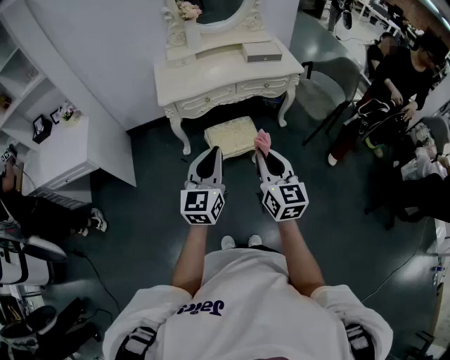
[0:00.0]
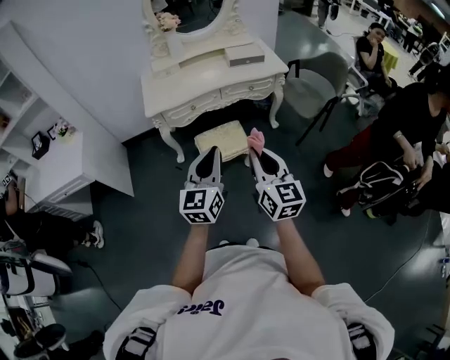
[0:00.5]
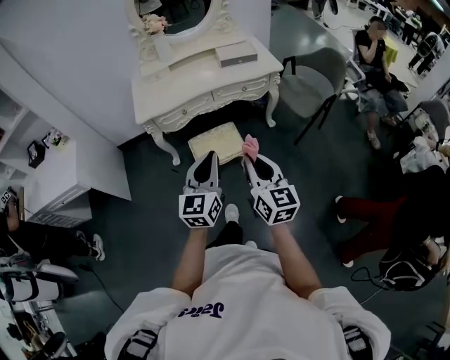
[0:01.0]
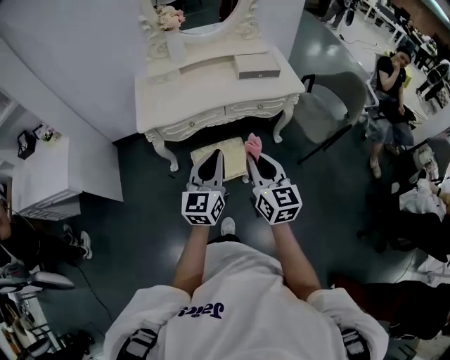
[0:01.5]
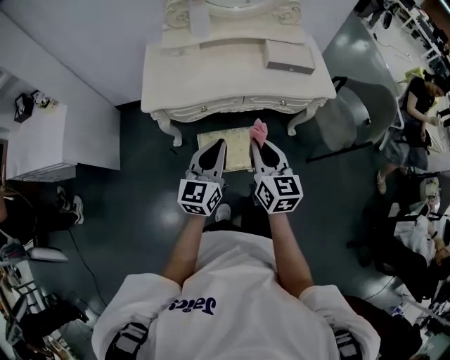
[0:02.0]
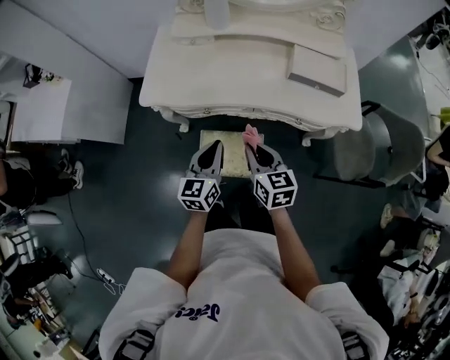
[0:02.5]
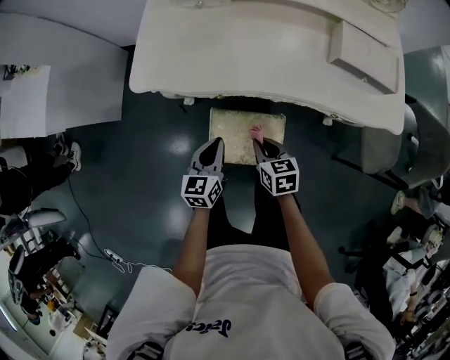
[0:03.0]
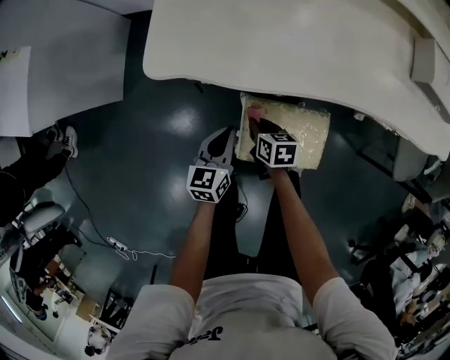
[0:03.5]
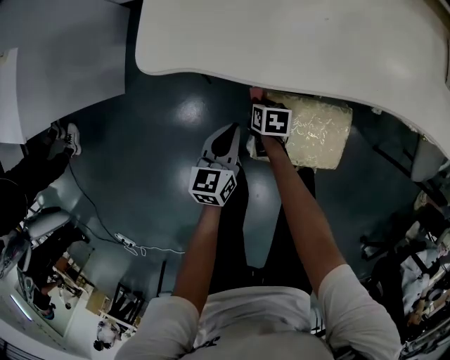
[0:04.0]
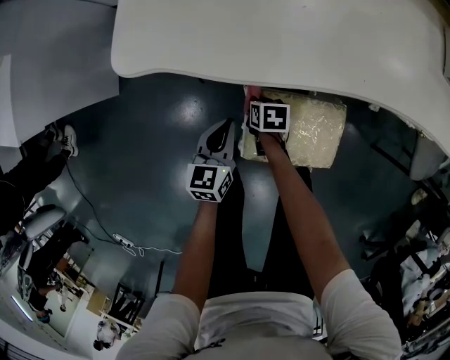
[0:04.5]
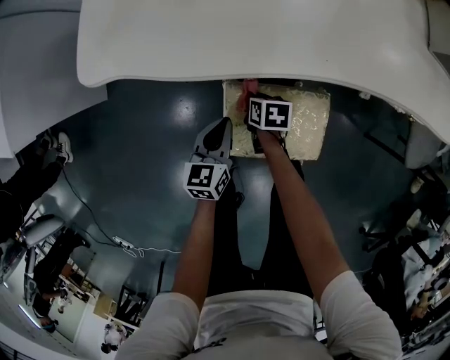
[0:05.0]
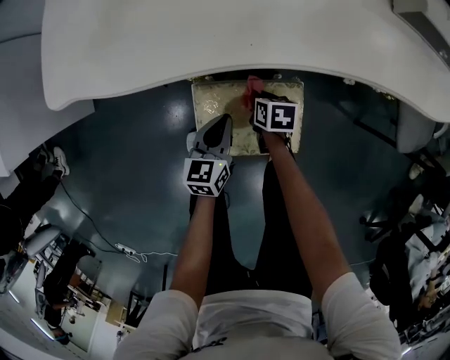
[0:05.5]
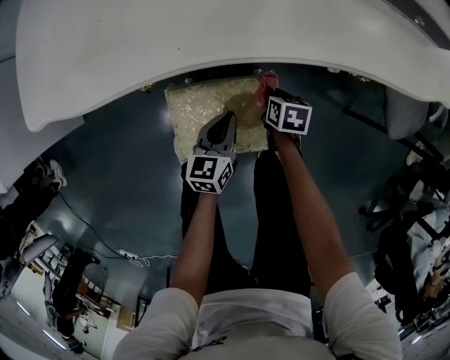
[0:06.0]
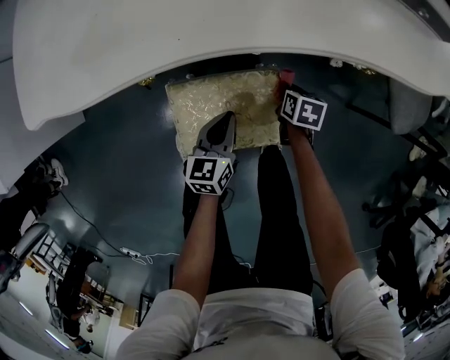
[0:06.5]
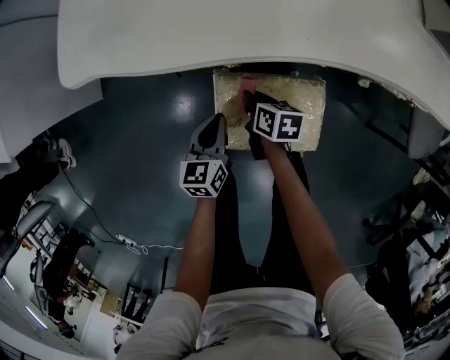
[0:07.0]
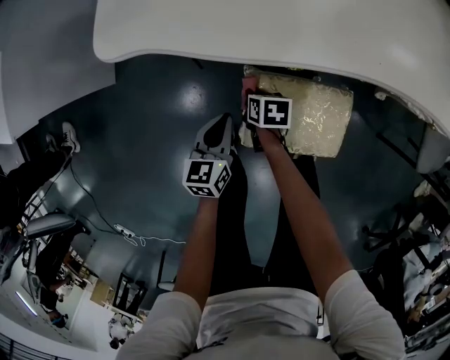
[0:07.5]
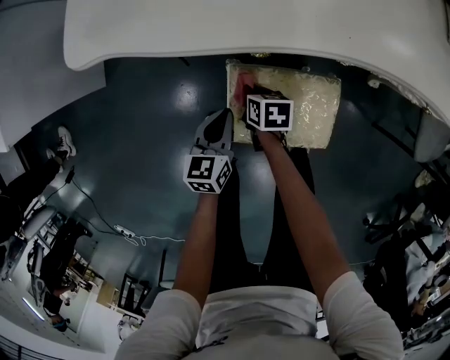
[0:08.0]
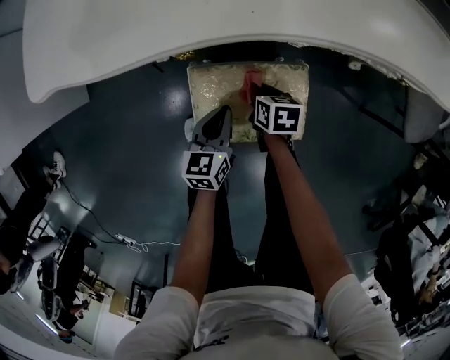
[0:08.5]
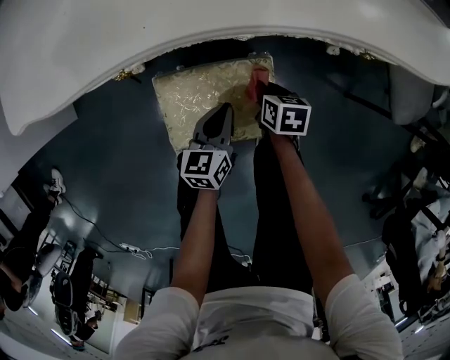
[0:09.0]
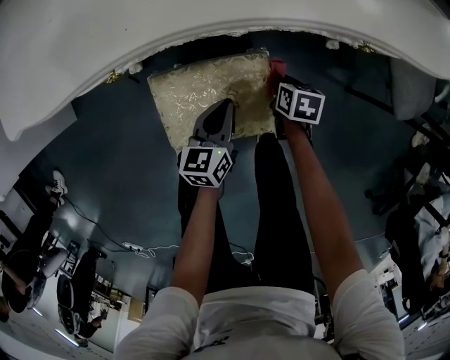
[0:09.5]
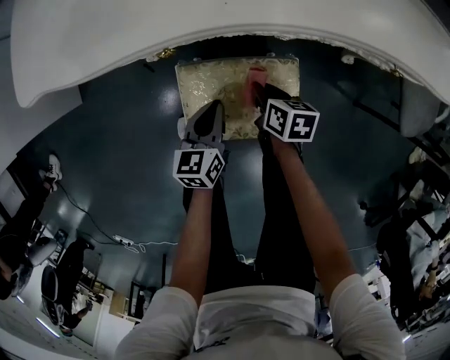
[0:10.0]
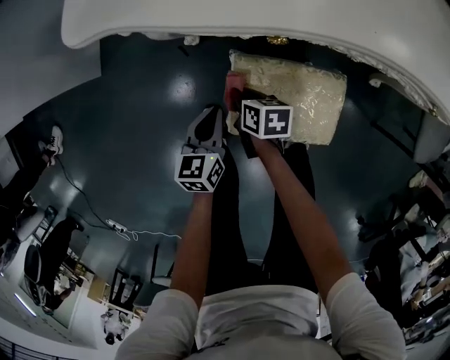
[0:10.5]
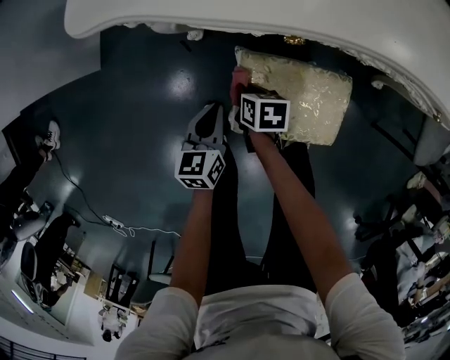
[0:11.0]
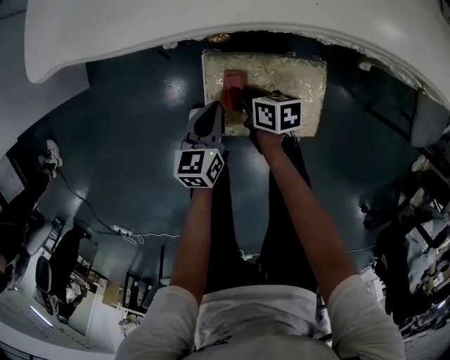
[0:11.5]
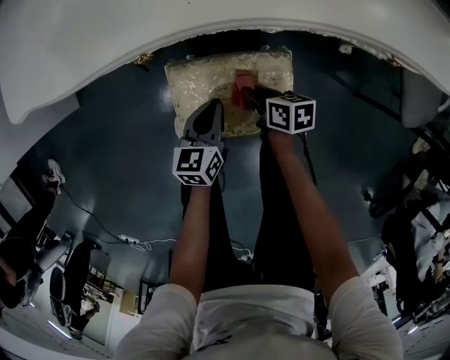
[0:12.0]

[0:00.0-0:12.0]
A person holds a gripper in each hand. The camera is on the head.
0:00.0 to 0:02.0: The two grippers go about 35 cm forward.
0:02.0 to 0:04.0: Both grippers move downward, about 50 cm. The right gripper tips its fingers downward by some 50 degrees, while the left gripper changes its angle by approximately 30 degrees.
0:04.0 to 0:06.0: Both grippers travel together to the right, about 30 cm.
0:06.0 to 0:08.0: The right gripper ends up some 25 cm from where it was, while the left gripper shifts by roughly 20 cm.
0:08.0 to 0:10.0: Both grippers move to the right, some 15 cm.
0:10.0 to 0:12.0: The left gripper goes to the left and returns, roughly 15 cm each way. The right gripper travels to the left and back again, roughly 20 cm each way.

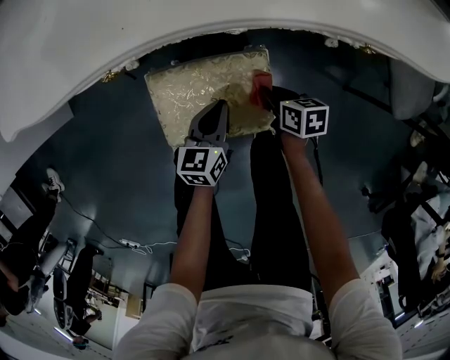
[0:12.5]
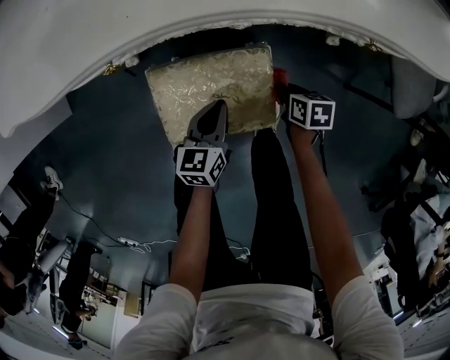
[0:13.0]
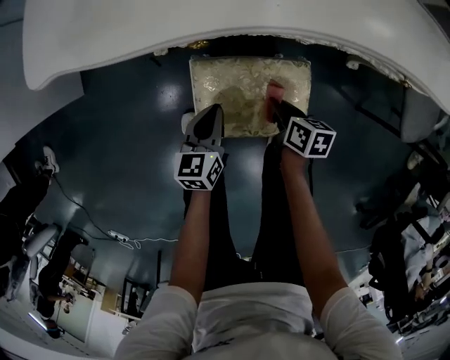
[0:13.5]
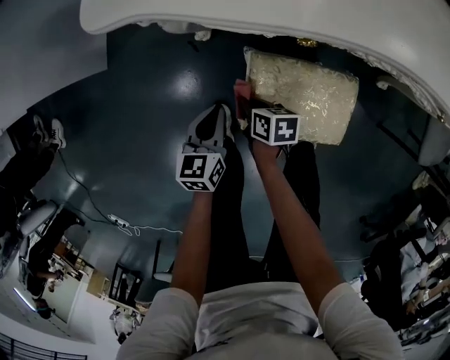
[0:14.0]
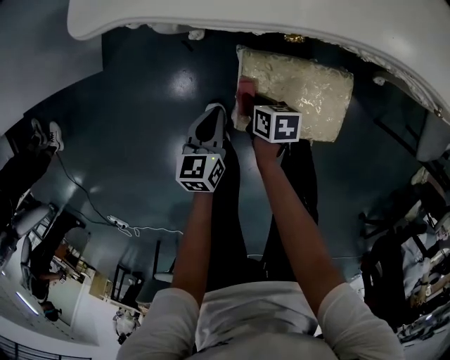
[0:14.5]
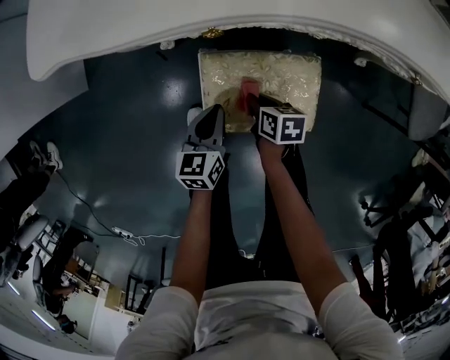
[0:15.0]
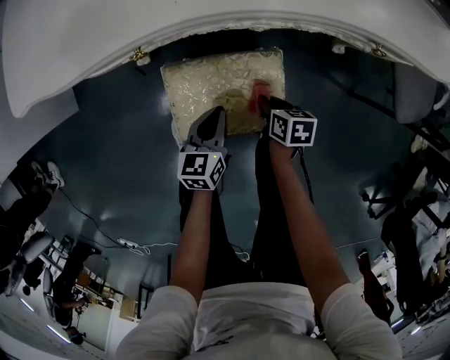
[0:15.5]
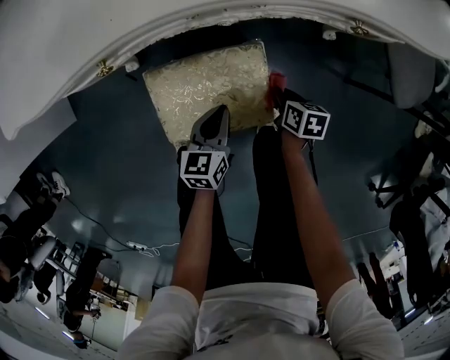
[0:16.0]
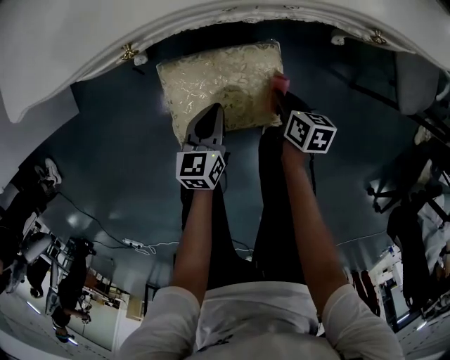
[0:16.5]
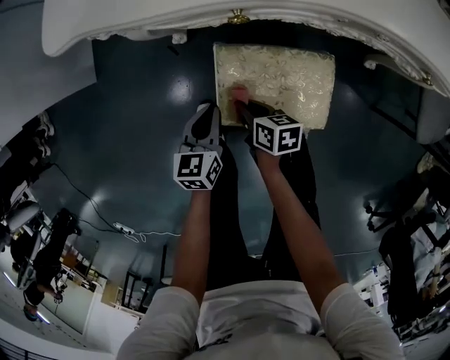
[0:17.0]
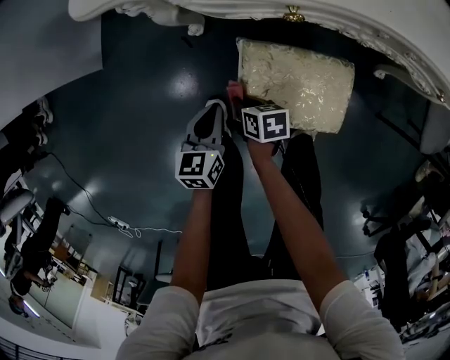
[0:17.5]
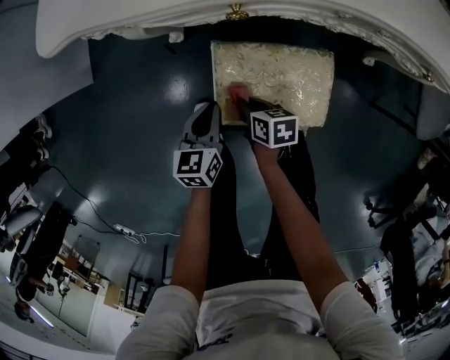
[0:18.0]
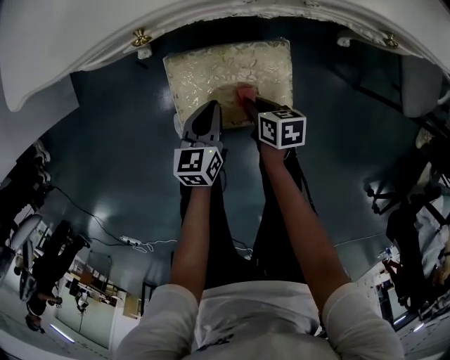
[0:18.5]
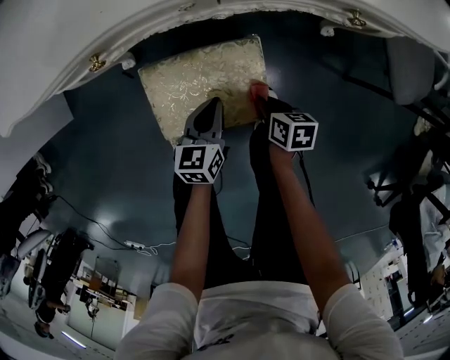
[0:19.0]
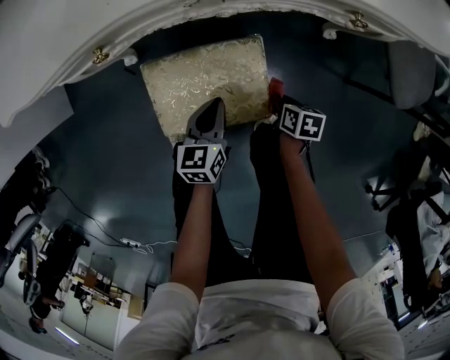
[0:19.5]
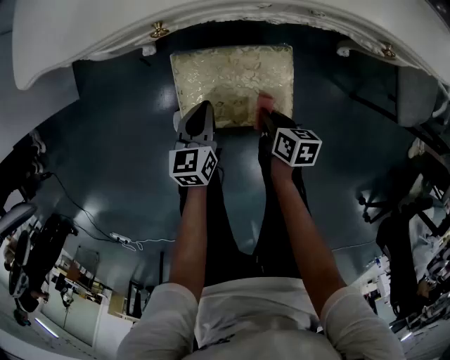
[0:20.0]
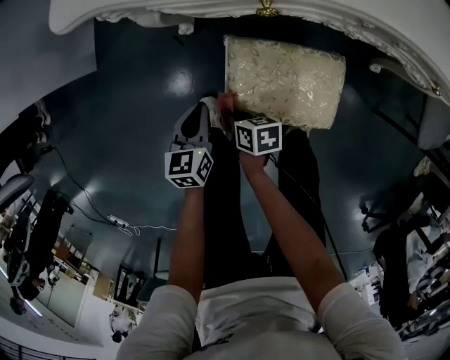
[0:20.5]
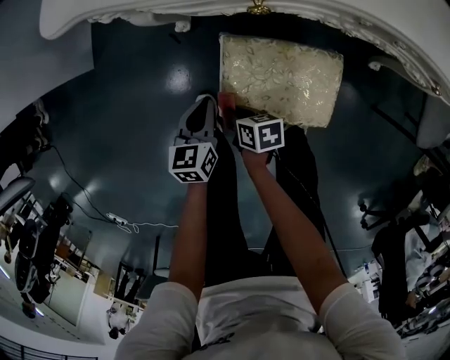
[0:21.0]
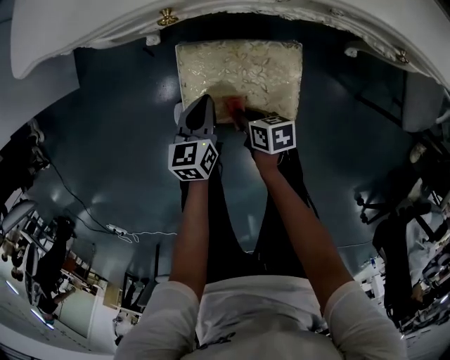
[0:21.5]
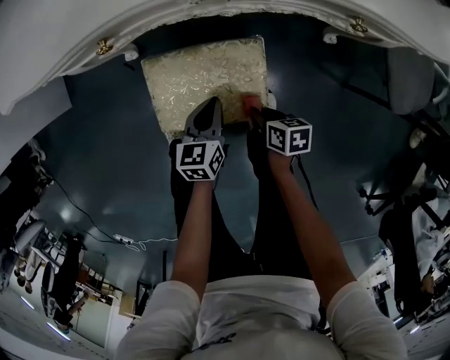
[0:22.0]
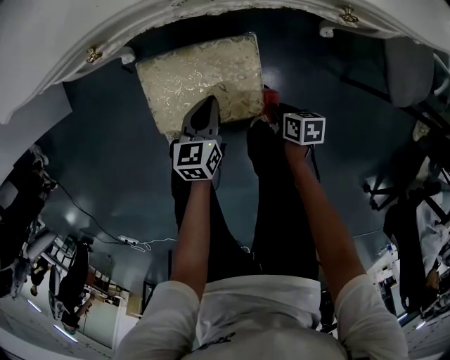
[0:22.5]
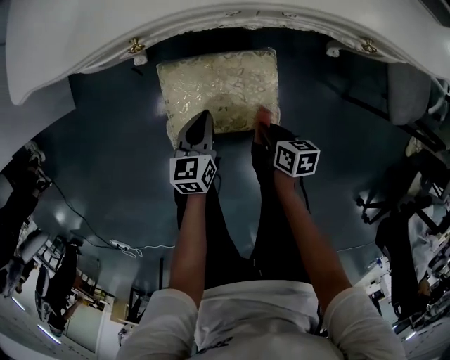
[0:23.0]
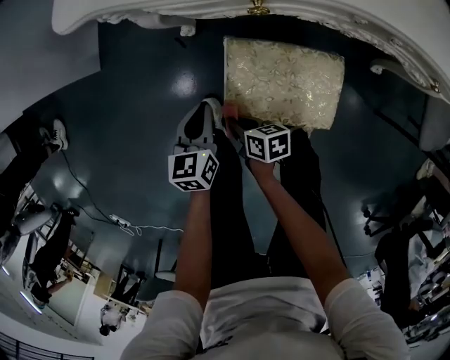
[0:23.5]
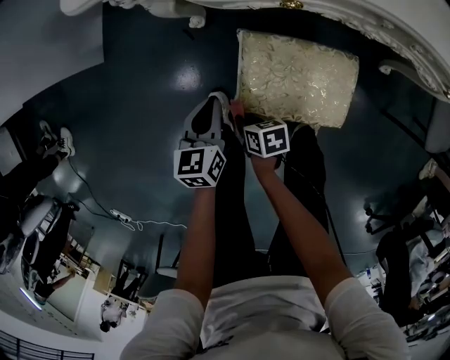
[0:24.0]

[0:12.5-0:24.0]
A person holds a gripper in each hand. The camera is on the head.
0:12.5 to 0:14.5: The two grippers go some 30 cm to the left.
0:14.5 to 0:16.5: The right gripper ends up some 30 cm from where it was, and changes its angle by approximately 20 degrees. The left gripper changes place by some 20 cm.
0:18.5 to 0:20.0: The left gripper reaches approximately 10 cm to the right, then returns. The right gripper goes to the right and returns, approximately 15 cm each way.
0:20.0 to 0:22.0: The right gripper reaches about 25 cm to the left, then returns, while the left gripper travels to the right by some 10 cm.
0:22.0 to 0:24.0: Both grippers travel together to the left, about 25 cm.

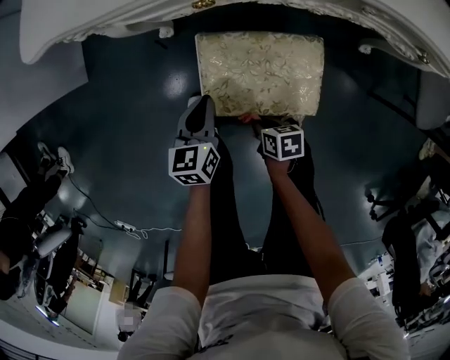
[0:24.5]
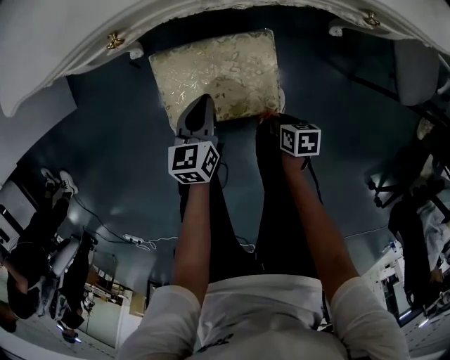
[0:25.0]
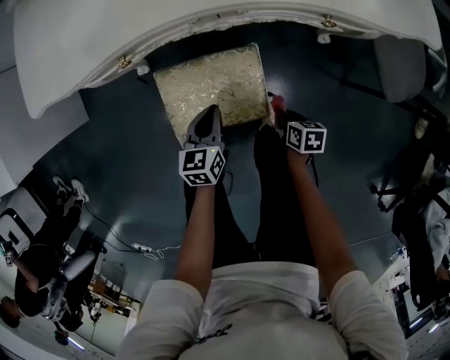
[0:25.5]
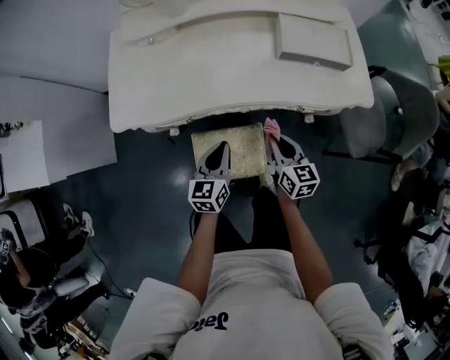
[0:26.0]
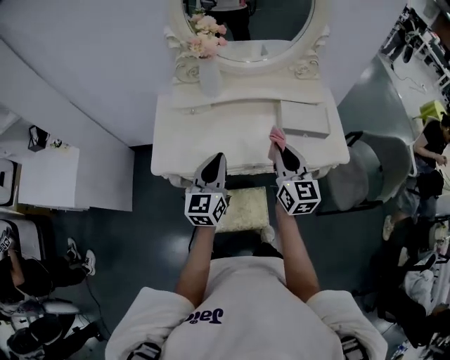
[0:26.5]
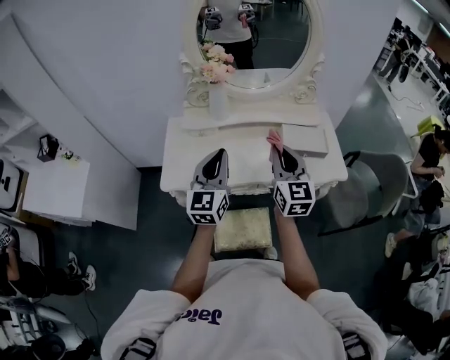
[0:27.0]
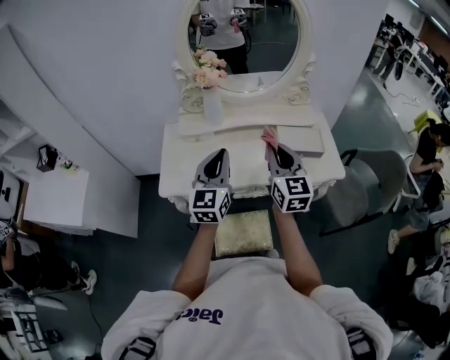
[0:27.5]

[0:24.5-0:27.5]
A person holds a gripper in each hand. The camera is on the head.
0:24.5 to 0:26.0: Both grippers move upward, some 35 cm. The right gripper points its fingers some 30 degrees further upward. The left gripper rotates approximately 20 degrees.
0:26.0 to 0:27.5: The grippers both shift upward by approximately 40 cm. The left gripper rotates some 30 degrees. Meanwhile the right gripper turns by about 30 degrees.
